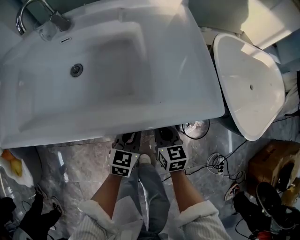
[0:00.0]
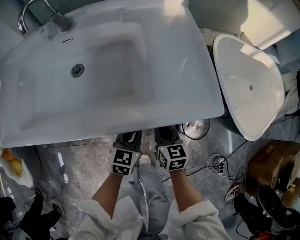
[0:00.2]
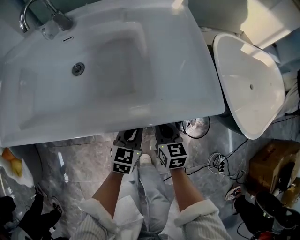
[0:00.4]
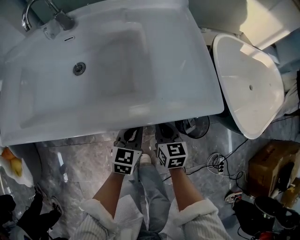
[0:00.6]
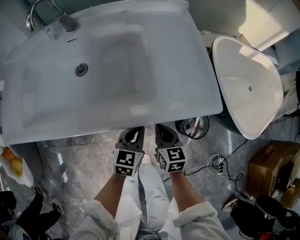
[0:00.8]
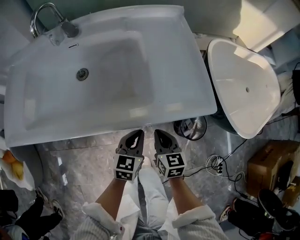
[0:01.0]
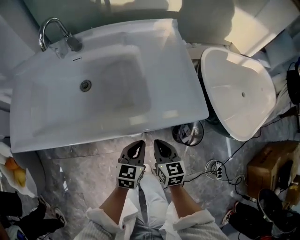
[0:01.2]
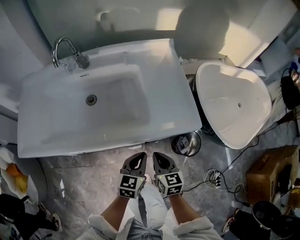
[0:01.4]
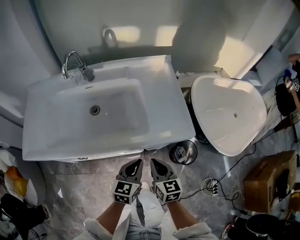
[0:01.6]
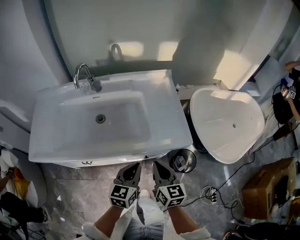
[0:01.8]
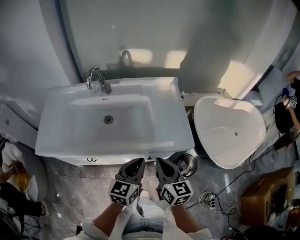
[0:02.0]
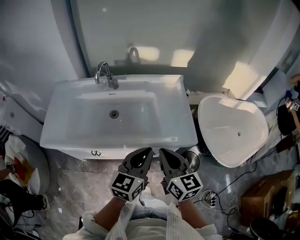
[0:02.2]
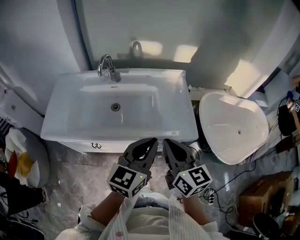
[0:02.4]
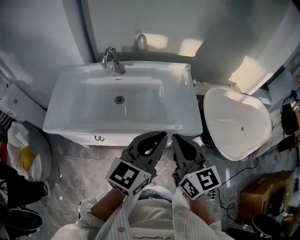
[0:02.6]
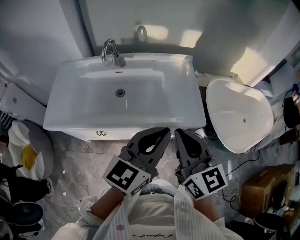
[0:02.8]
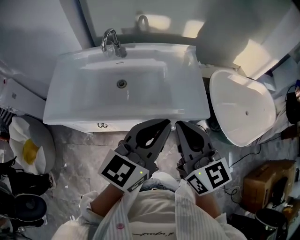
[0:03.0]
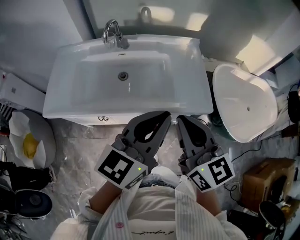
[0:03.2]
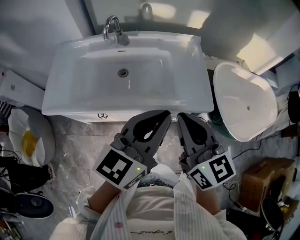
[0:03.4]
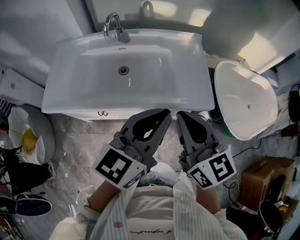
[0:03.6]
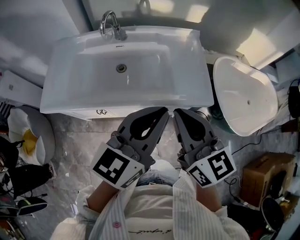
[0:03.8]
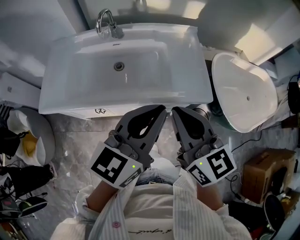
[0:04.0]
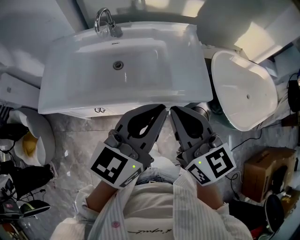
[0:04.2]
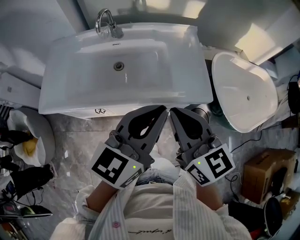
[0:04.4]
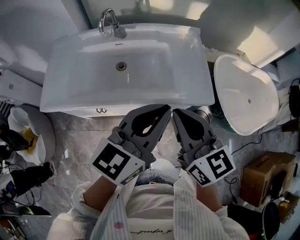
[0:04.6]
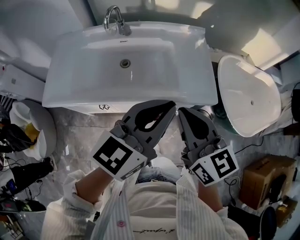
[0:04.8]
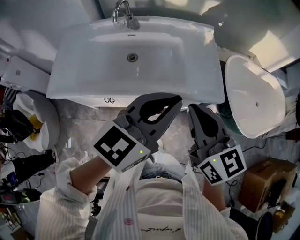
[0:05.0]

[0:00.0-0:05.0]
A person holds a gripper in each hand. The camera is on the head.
0:00.0 to 0:01.6: The left gripper shifts some 15 cm upward; the right gripper moves upward and backward, some 15 cm.
0:01.6 to 0:03.4: The two grippers go roughly 30 cm upward. The left gripper turns by about 20 degrees; the right gripper swivels roughly 20 degrees.
0:03.4 to 0:05.0: There are only small adjustments of the grippers.

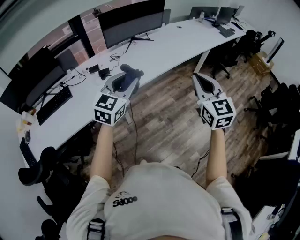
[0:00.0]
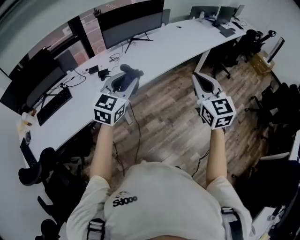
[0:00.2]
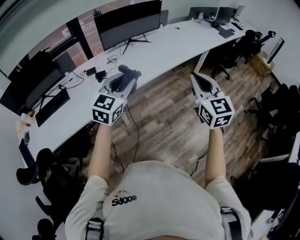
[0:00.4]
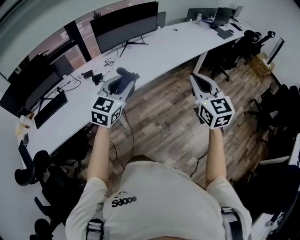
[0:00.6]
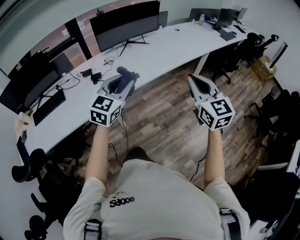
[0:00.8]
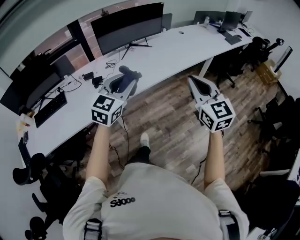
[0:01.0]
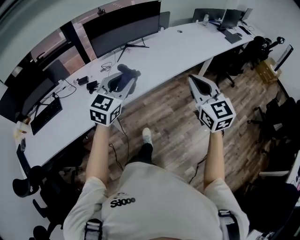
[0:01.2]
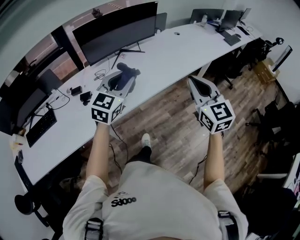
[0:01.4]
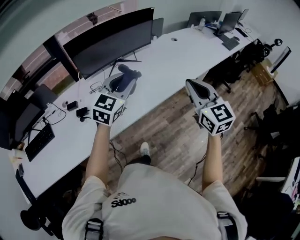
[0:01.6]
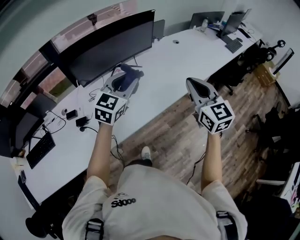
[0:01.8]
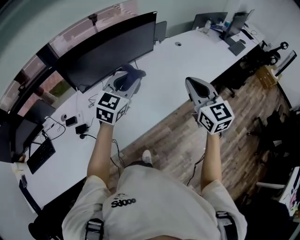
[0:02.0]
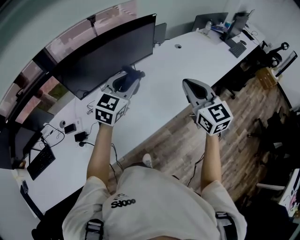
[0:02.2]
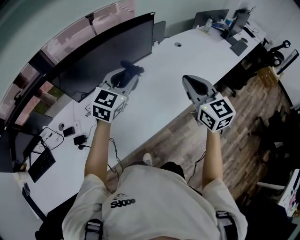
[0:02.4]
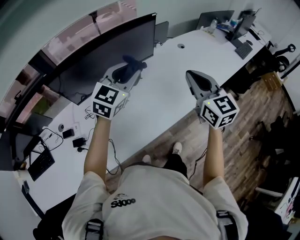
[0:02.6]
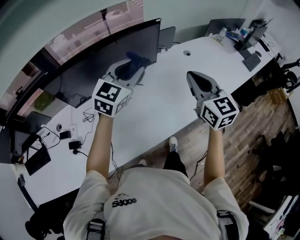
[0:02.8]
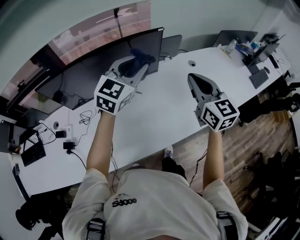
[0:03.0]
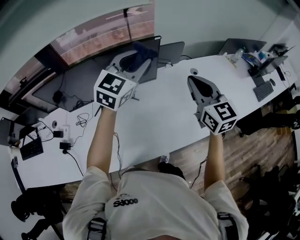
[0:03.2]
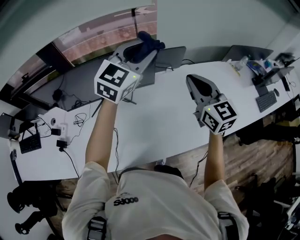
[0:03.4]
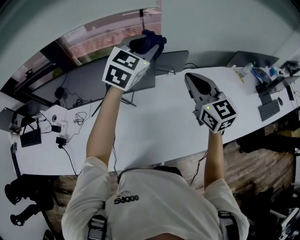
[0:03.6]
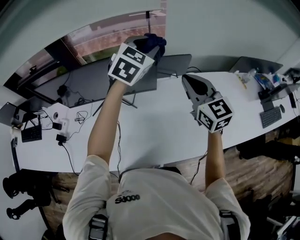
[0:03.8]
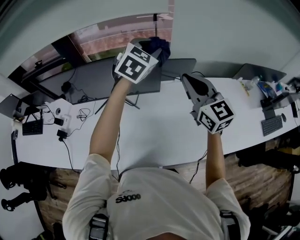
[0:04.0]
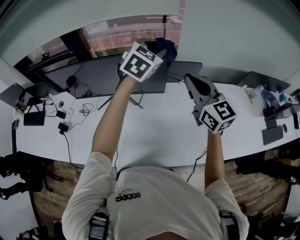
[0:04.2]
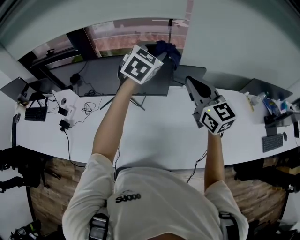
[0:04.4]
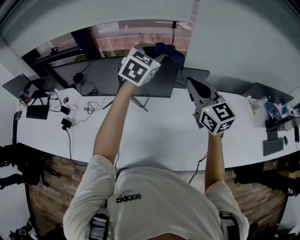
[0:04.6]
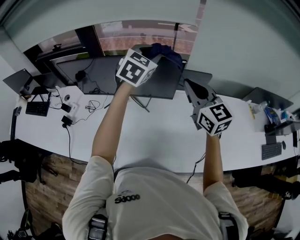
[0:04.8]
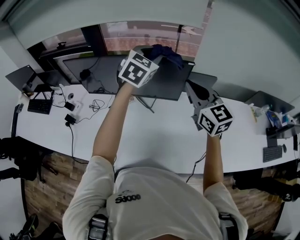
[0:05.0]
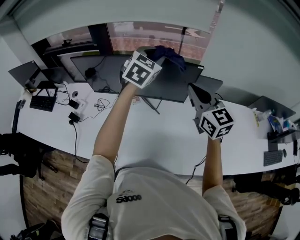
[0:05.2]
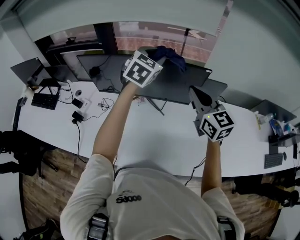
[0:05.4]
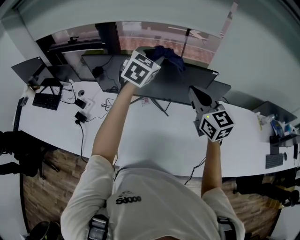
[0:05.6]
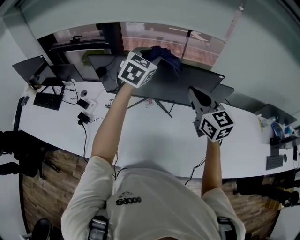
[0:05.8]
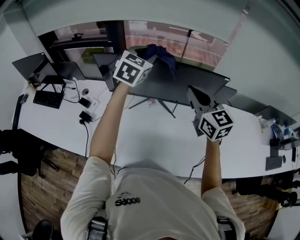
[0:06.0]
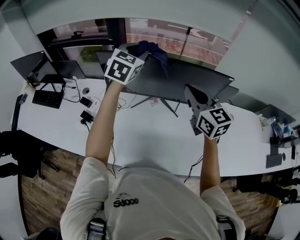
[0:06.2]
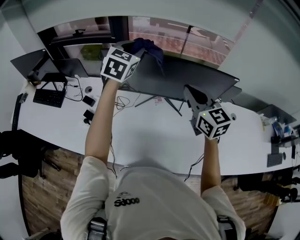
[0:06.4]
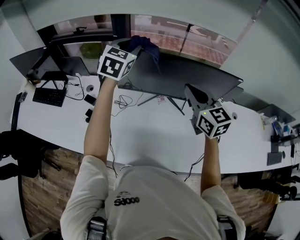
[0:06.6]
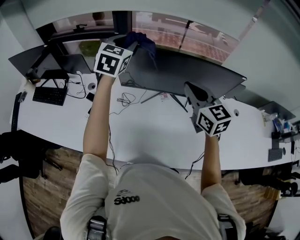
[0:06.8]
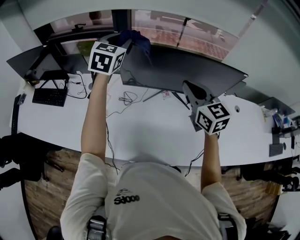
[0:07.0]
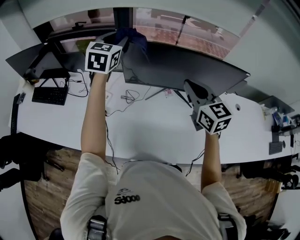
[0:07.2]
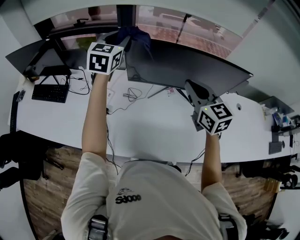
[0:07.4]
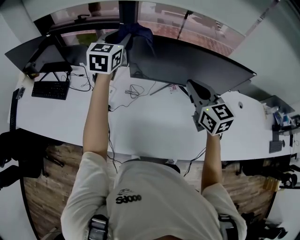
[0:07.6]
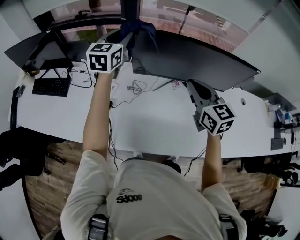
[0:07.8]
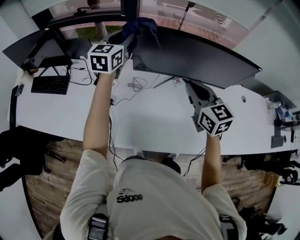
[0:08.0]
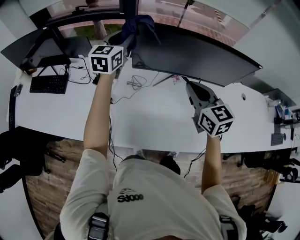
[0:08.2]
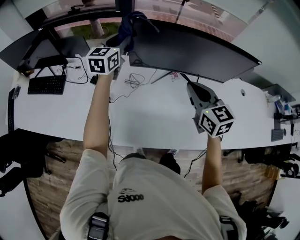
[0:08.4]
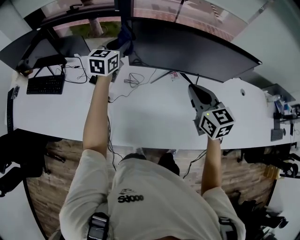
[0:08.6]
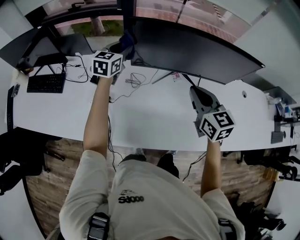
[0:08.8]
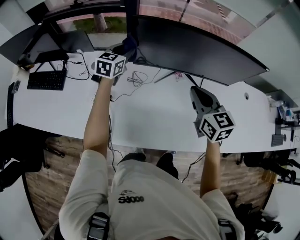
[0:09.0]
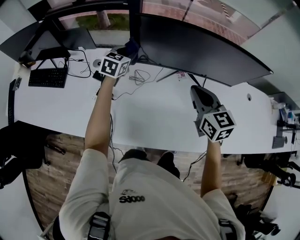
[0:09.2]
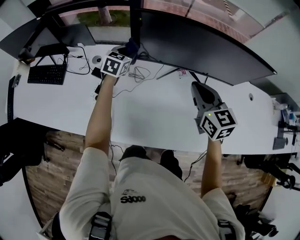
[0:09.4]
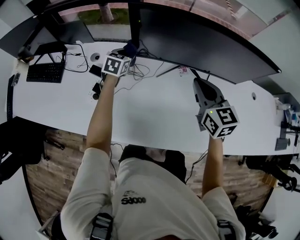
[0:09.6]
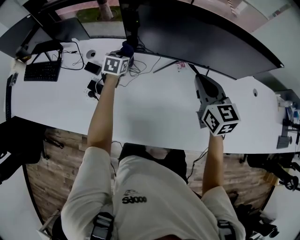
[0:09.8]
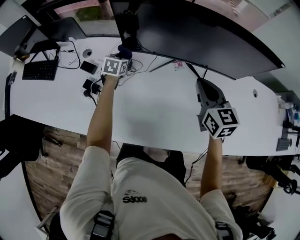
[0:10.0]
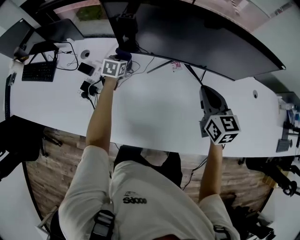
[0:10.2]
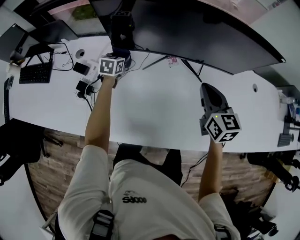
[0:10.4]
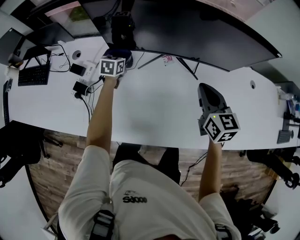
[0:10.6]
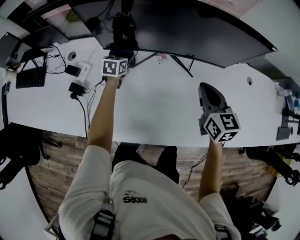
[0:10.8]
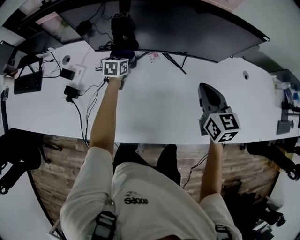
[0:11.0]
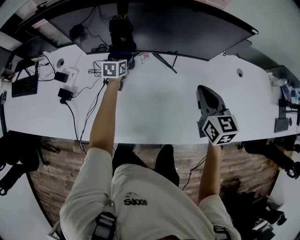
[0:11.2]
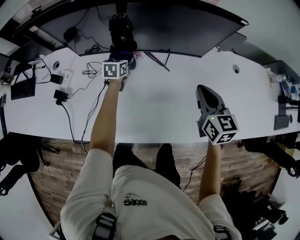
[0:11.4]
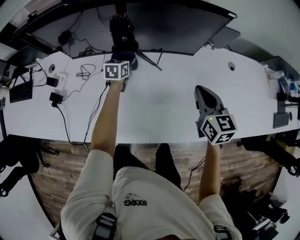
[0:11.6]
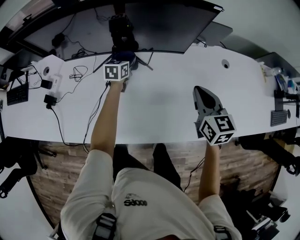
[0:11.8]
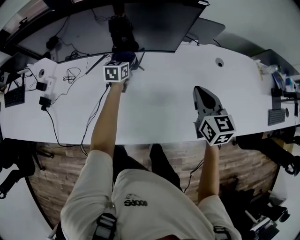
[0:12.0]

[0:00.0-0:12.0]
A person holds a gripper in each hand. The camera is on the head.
0:00.0 to 0:01.6: Both grippers move forward, some 35 cm.
0:01.6 to 0:03.0: The two grippers travel together, forward, about 40 cm.
0:03.0 to 0:04.4: The left gripper shifts by some 20 cm, and turns by roughly 30 degrees; the right gripper ends up approximately 15 cm from where it was, and changes its angle by roughly 30 degrees.
0:04.4 to 0:06.0: Both grippers travel together to the left, about 30 cm.
0:06.0 to 0:07.6: The two grippers go some 25 cm to the left.
0:07.6 to 0:09.0: The left gripper shifts roughly 20 cm downward; the right gripper moves downward, some 10 cm.
0:09.0 to 0:10.4: The right gripper travels to the right and downward by approximately 15 cm. The left gripper travels downward by some 20 cm, and turns by about 20 degrees.
0:10.4 to 0:12.0: Both grippers move to the right, approximately 35 cm.

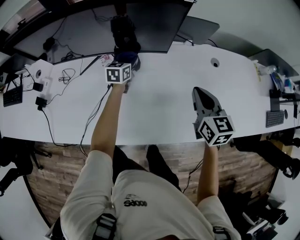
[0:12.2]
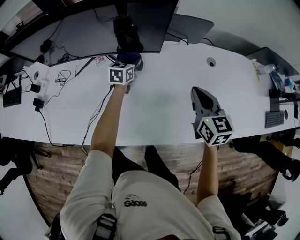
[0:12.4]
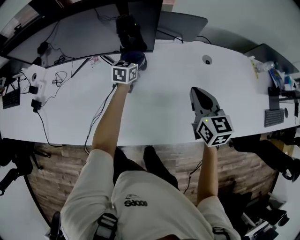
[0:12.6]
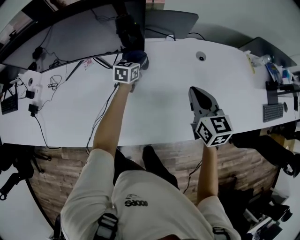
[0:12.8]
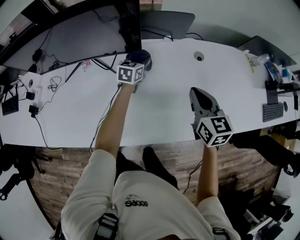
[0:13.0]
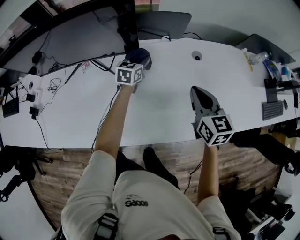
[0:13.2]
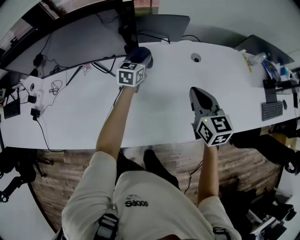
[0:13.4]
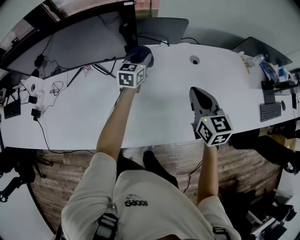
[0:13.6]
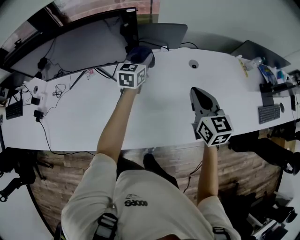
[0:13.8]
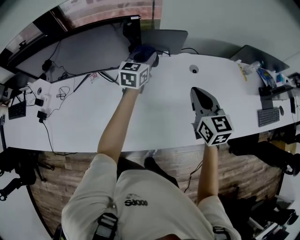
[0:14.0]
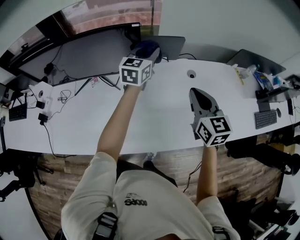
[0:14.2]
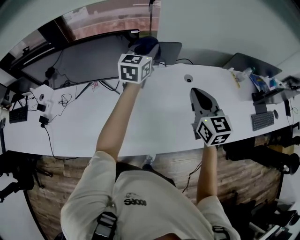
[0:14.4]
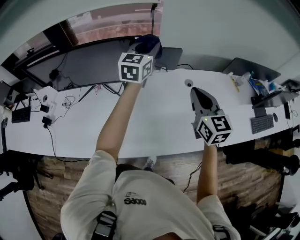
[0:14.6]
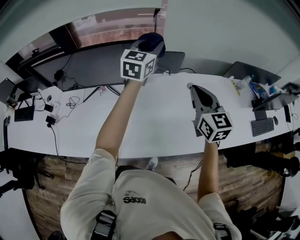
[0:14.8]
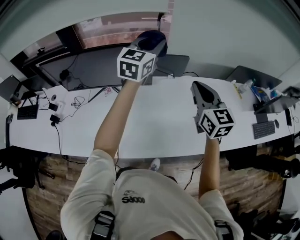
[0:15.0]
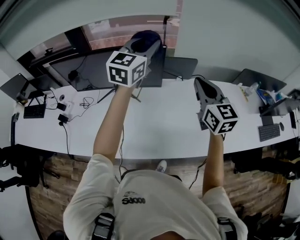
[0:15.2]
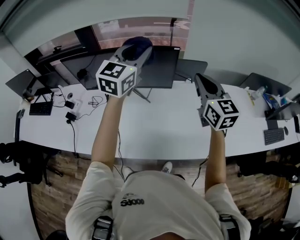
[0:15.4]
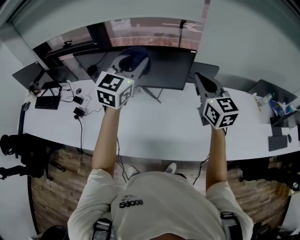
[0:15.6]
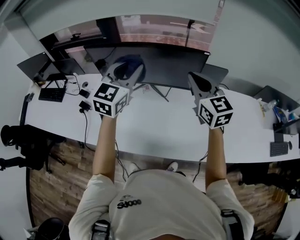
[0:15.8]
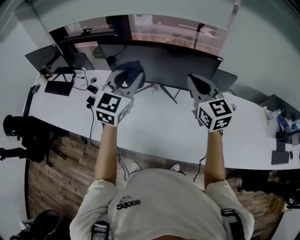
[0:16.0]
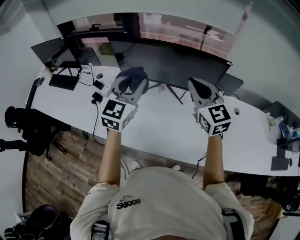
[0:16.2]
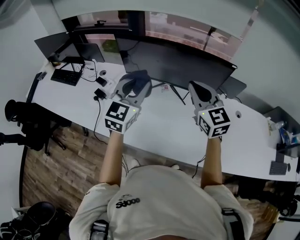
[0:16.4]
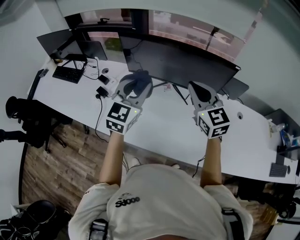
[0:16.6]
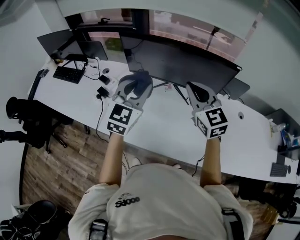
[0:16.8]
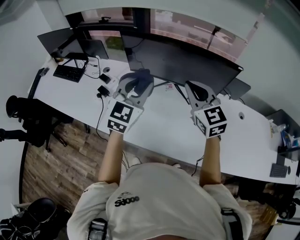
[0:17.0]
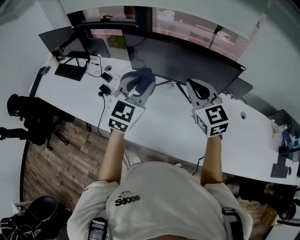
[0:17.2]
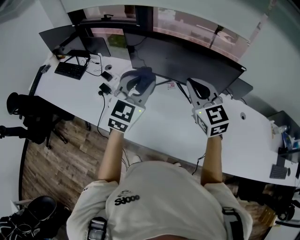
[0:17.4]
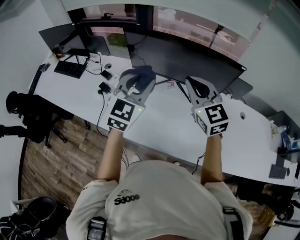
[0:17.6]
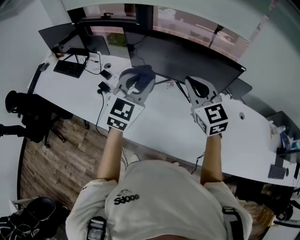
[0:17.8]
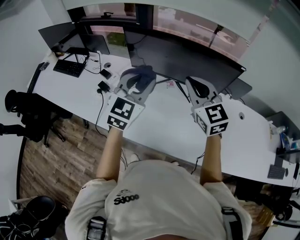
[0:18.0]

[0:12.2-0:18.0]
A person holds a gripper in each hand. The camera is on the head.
0:12.2 to 0:13.6: The left gripper moves to the right and upward, about 20 cm. Meanwhile the right gripper heads to the right, covering approximately 10 cm.
0:13.6 to 0:15.0: The left gripper heads upward, covering approximately 35 cm, and changes its angle by some 20 degrees, while the right gripper moves upward, about 20 cm.
0:15.0 to 0:16.6: The left gripper travels to the left and backward by about 40 cm, and swivels some 20 degrees; the right gripper shifts roughly 35 cm to the left, and changes its angle by approximately 30 degrees.
0:16.6 to 0:18.0: There are only small adjustments of the grippers.

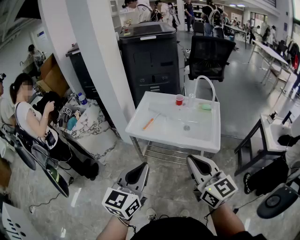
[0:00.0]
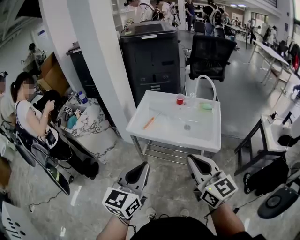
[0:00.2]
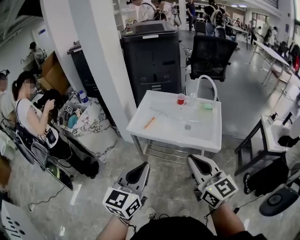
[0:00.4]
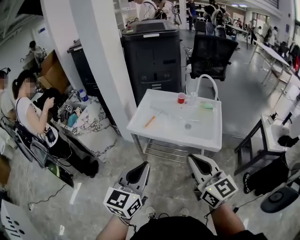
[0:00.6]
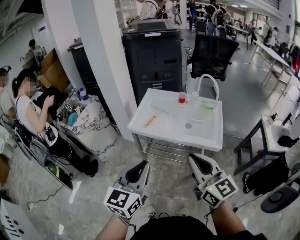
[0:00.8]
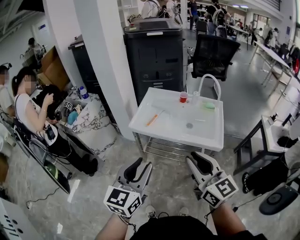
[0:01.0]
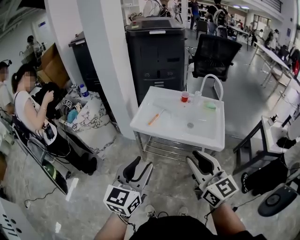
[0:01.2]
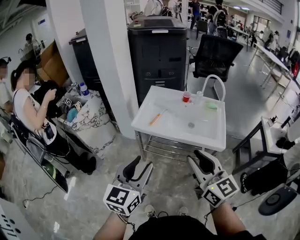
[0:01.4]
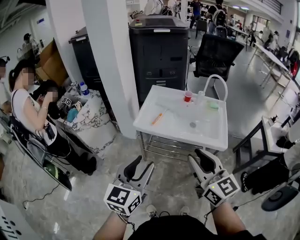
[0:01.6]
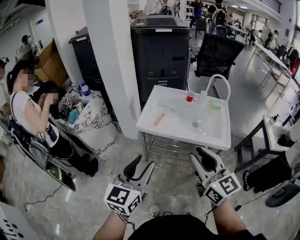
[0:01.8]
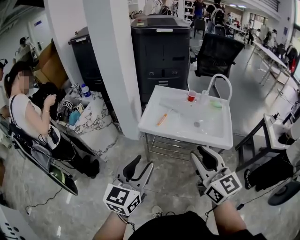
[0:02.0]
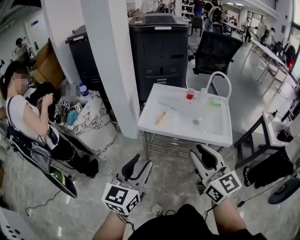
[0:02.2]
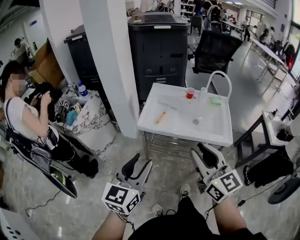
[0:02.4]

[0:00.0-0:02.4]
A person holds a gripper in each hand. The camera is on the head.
0:00.0 to 0:01.2: The right gripper opens up, while the left gripper moves to the left, roughly 5 cm, and opens its fingers.
0:01.2 to 0:02.4: The two grippers go about 10 cm to the left.
